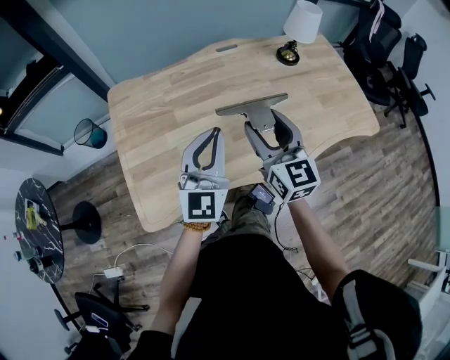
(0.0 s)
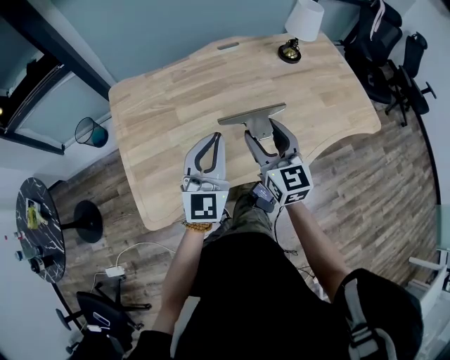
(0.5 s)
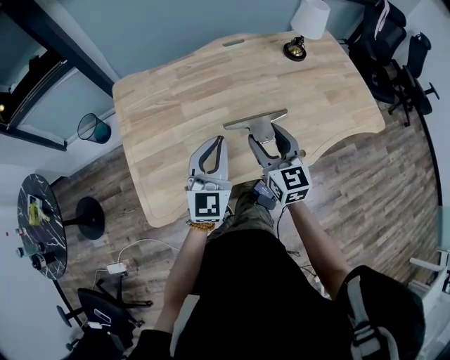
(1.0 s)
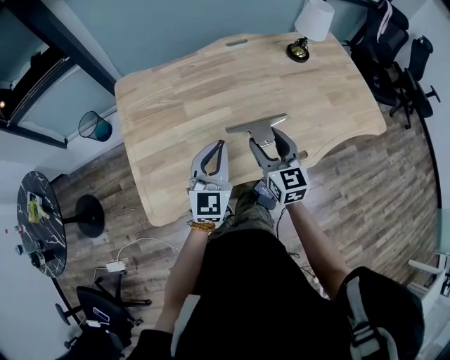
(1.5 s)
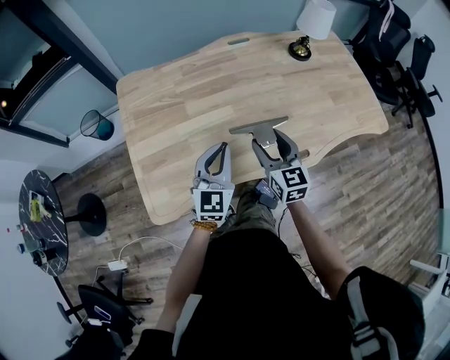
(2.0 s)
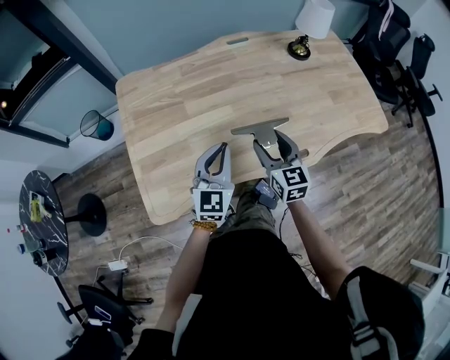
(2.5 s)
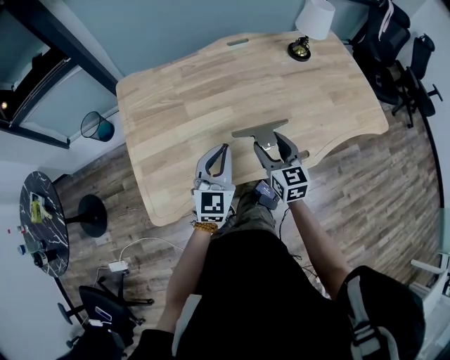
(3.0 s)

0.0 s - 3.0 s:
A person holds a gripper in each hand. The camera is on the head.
0.0 s - 1.5 s: Both grippers move downward, roughly 10 cm.
1.5 s - 3.0 s: The grippers stay close to where they were, moving slightly.

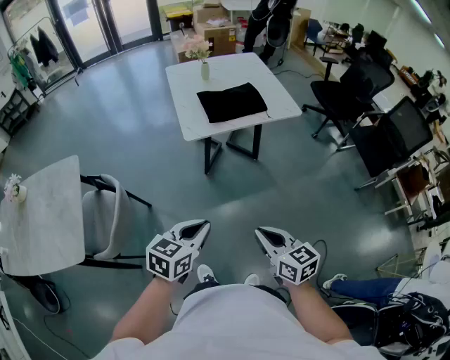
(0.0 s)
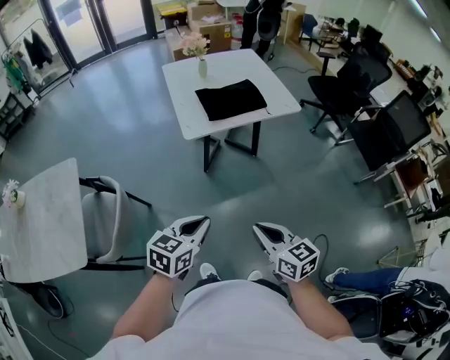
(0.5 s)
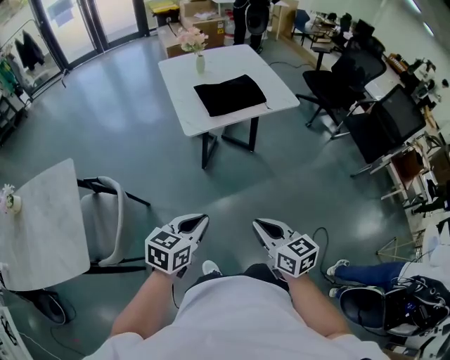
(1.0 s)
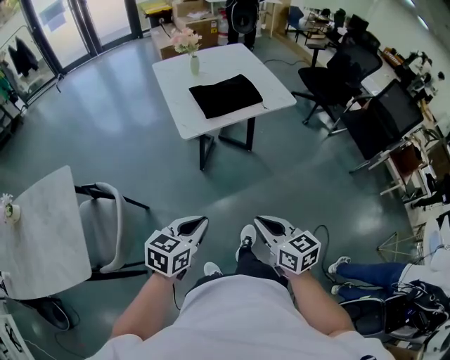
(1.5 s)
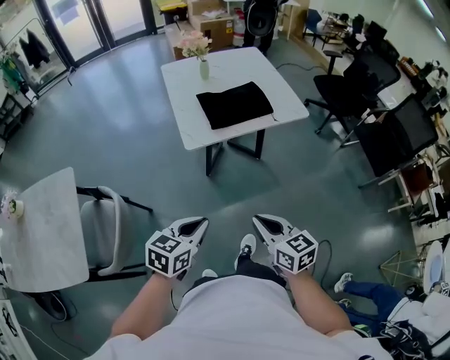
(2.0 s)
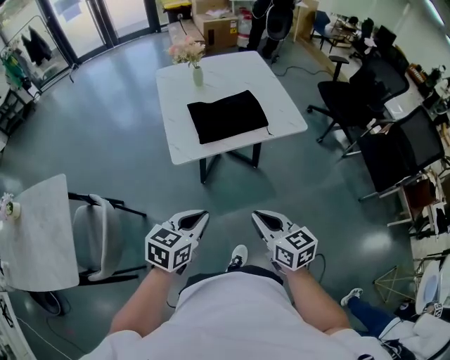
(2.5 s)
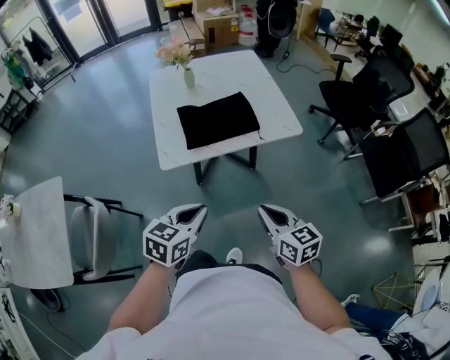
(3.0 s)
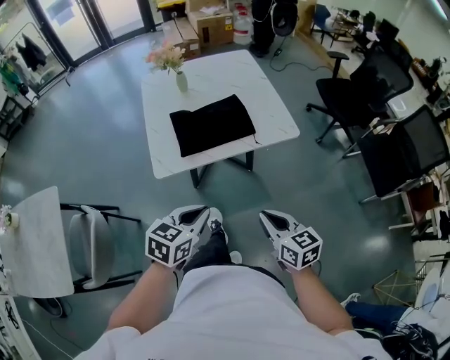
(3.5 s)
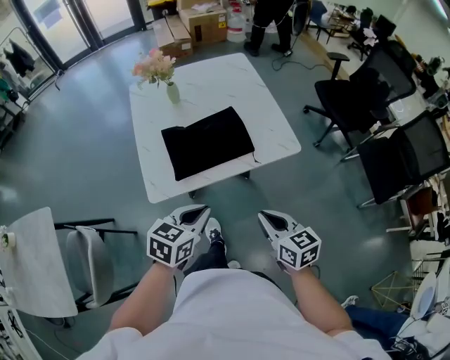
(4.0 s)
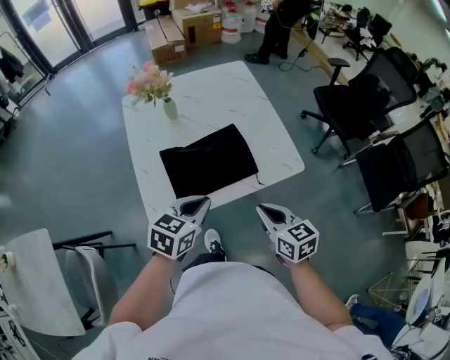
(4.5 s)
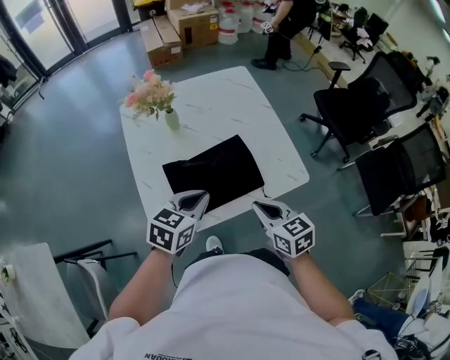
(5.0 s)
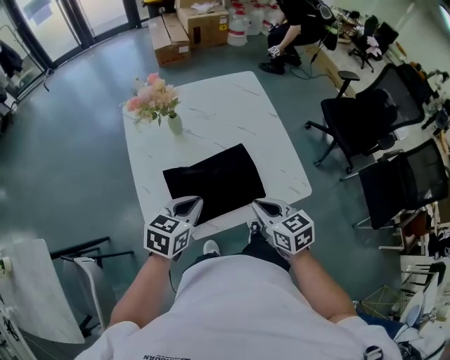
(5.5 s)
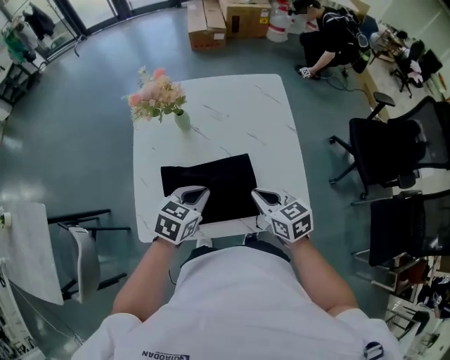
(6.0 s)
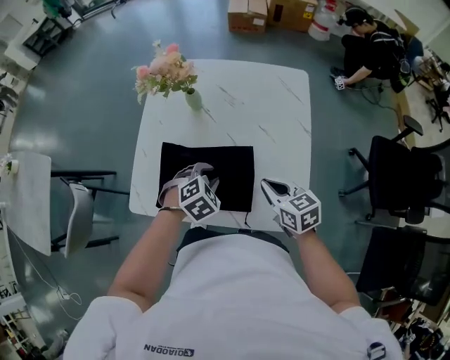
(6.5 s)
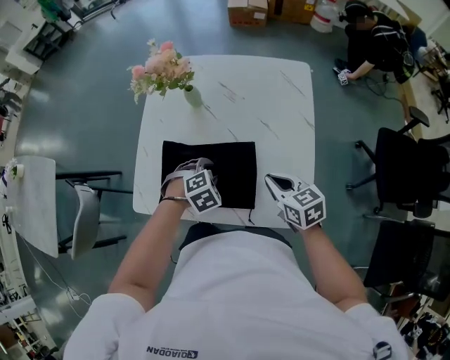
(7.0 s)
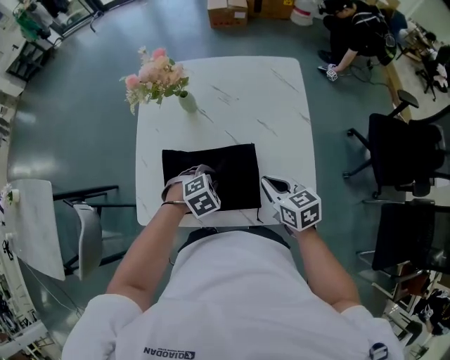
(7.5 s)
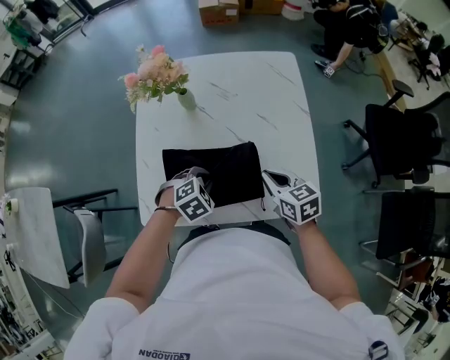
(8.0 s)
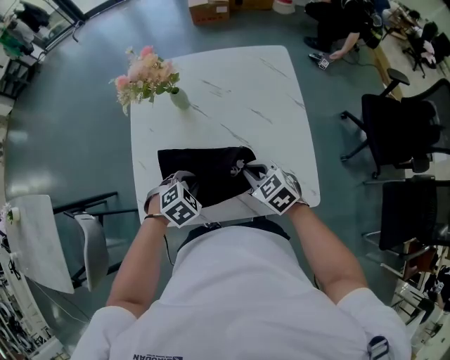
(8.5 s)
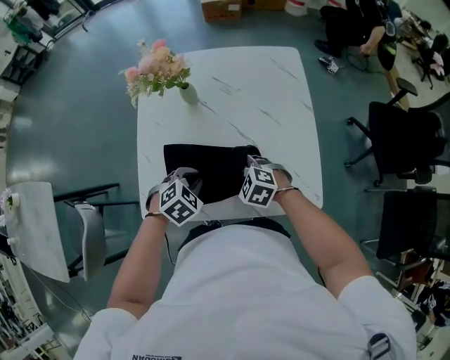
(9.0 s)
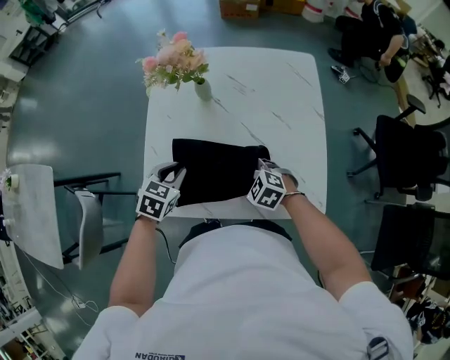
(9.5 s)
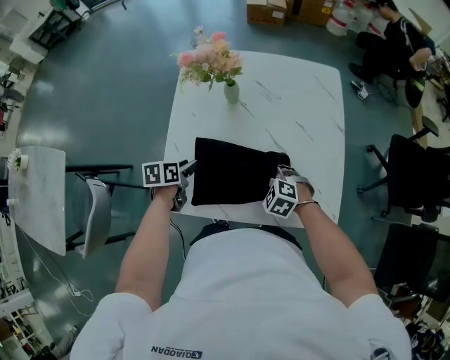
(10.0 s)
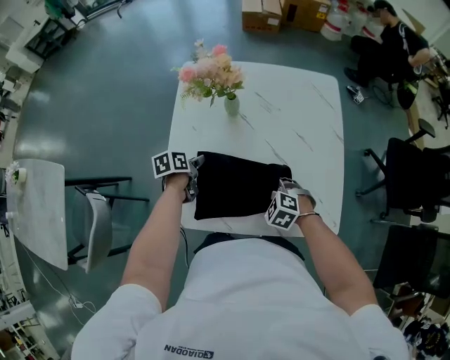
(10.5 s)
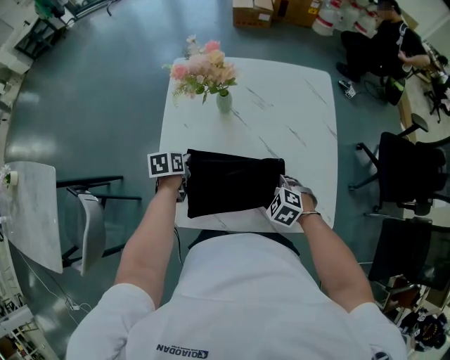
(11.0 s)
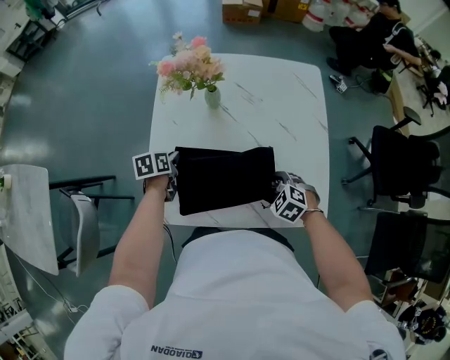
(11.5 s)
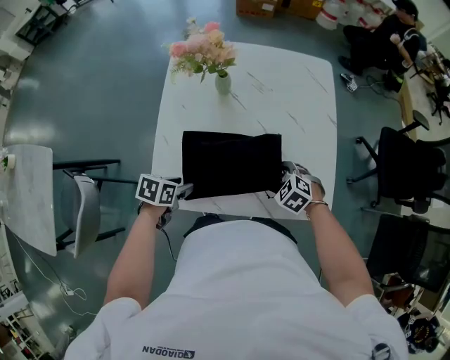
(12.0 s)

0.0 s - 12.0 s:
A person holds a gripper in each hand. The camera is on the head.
0.0 s - 2.0 s: Both grippers travel together forward, roughly 10 cm.
2.0 s - 4.0 s: The two grippers go some 35 cm forward and to the right.
4.0 s - 6.0 s: Both grippers move forward, roughly 30 cm. The right gripper changes its angle by approximately 20 degrees.
6.0 s - 8.0 s: The left gripper is displaced downward by about 10 cm, changes its angle by approximately 40 degrees, and opens, then closes again.
8.0 s - 10.0 s: The left gripper heads to the left, covering about 20 cm, rolls counterclockwise, seen from behind, by approximately 80 degrees, and opens; the right gripper travels downward and to the left by some 15 cm, twists roughly 60 degrees counterclockwise, seen from behind, and opens its fingers.
10.0 s - 12.0 s: The right gripper heads to the right, covering some 5 cm; the left gripper travels backward by some 10 cm, swivels roughly 20 degrees, and closes, then opens again.

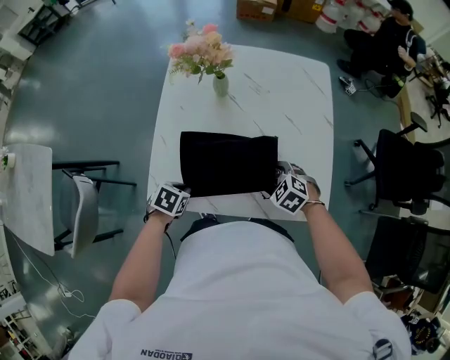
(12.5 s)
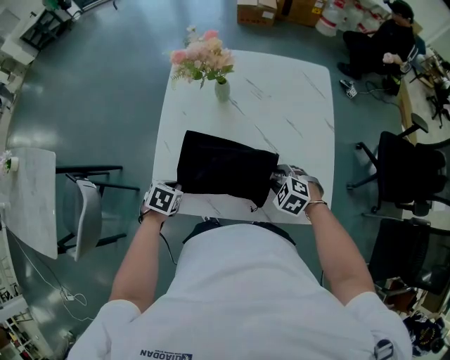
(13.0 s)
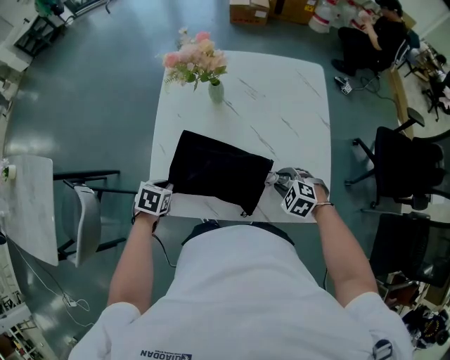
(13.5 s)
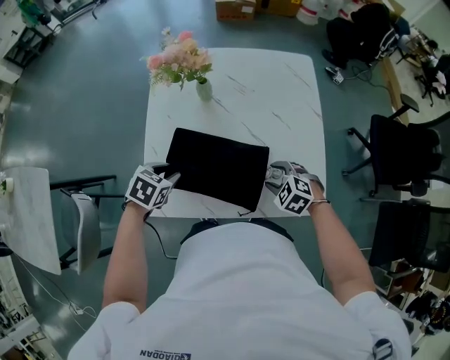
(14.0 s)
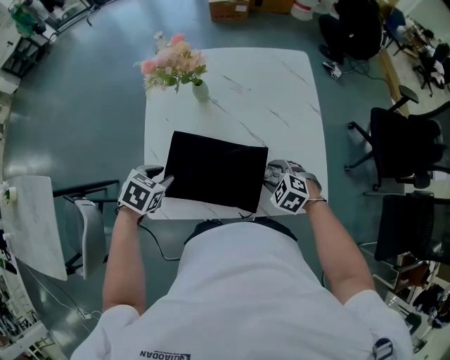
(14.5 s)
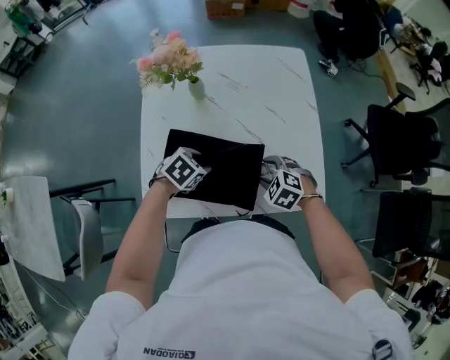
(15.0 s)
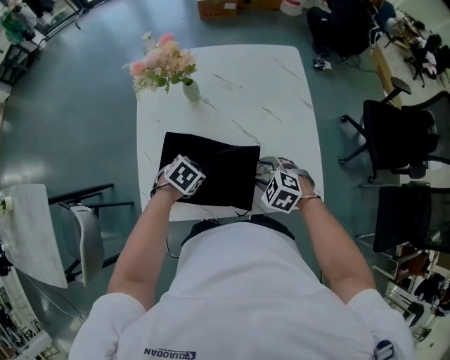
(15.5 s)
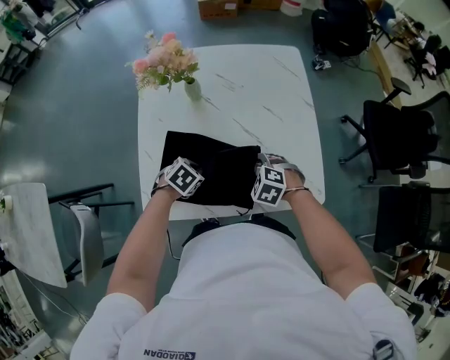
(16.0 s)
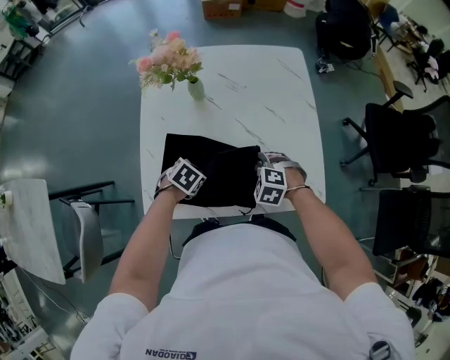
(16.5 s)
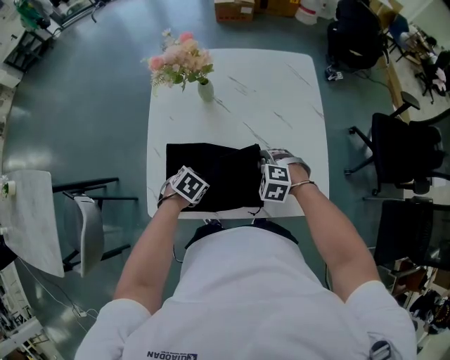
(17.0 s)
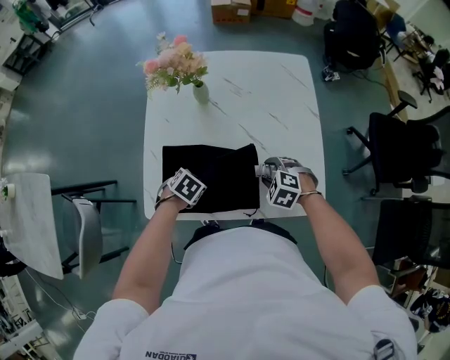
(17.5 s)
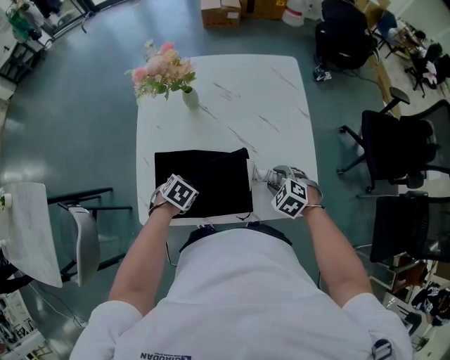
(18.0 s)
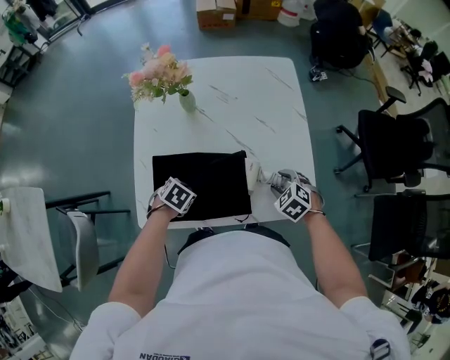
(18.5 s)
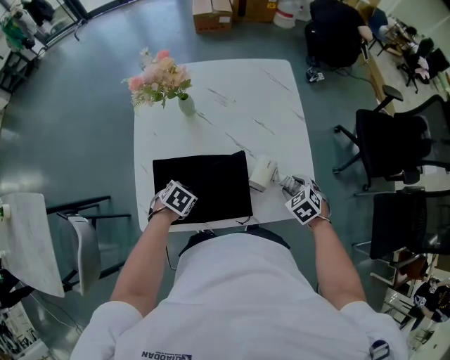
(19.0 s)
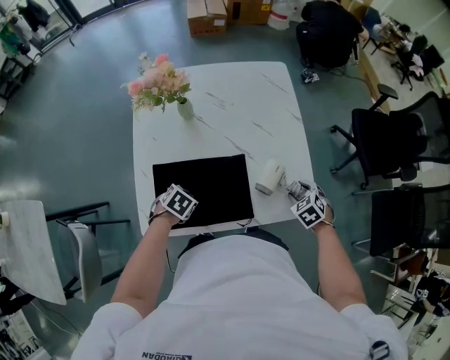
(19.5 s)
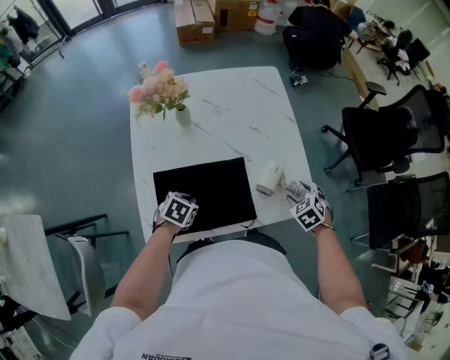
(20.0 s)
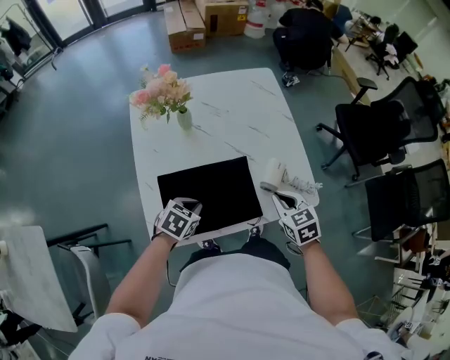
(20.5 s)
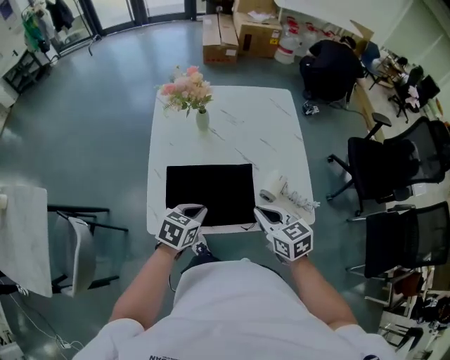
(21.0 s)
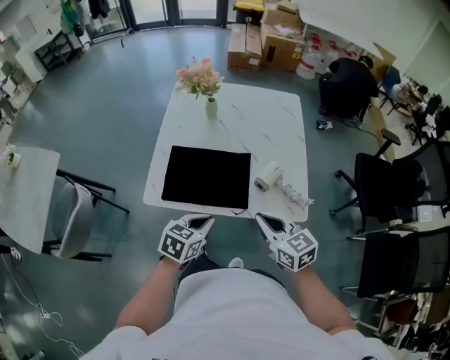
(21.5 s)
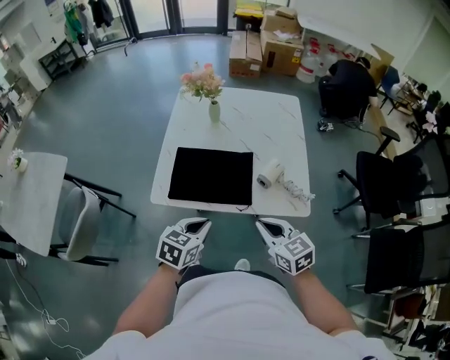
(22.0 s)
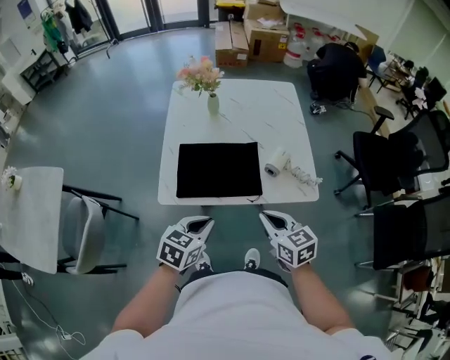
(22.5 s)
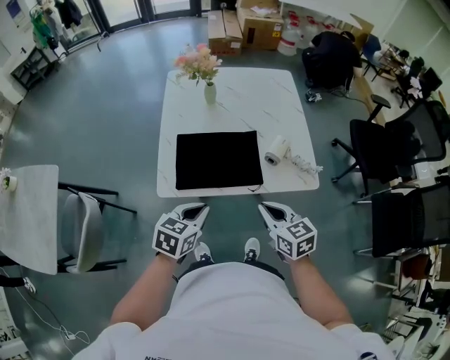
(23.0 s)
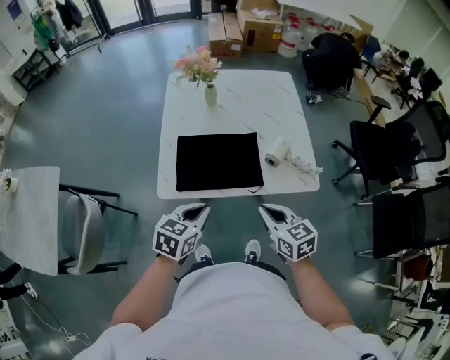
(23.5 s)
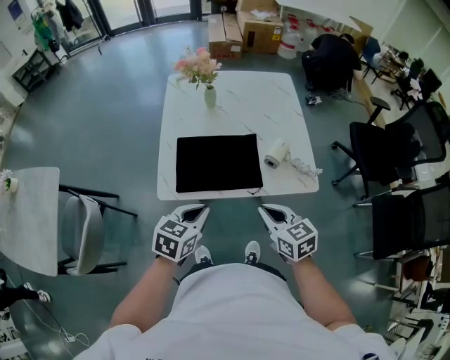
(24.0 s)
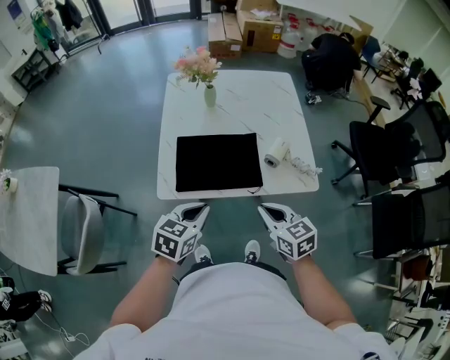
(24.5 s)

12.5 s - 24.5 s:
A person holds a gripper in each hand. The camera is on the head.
12.5 s - 14.5 s: The left gripper travels upward and forward by about 15 cm, and opens up.
14.5 s - 16.5 s: The left gripper travels downward and to the right by roughly 15 cm, and closes its fingers.
16.5 s - 18.5 s: The right gripper changes place by roughly 10 cm, and changes its angle by some 20 degrees.
18.5 s - 20.5 s: Both grippers travel together upward, about 10 cm. The left gripper changes its angle by approximately 20 degrees. Meanwhile the right gripper swivels some 40 degrees, and closes up.
20.5 s - 22.5 s: The right gripper ends up approximately 20 cm from where it was, and rotates roughly 20 degrees, while the left gripper shifts by approximately 25 cm, and rotates roughly 30 degrees.
22.5 s - 24.5 s: There are only small adjustments of the grippers.
